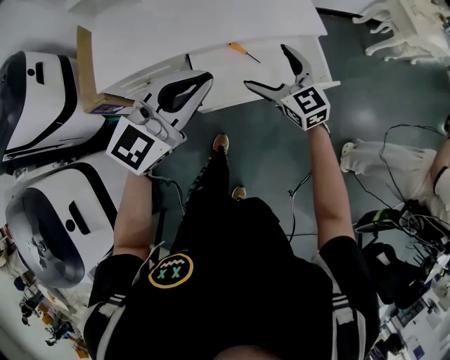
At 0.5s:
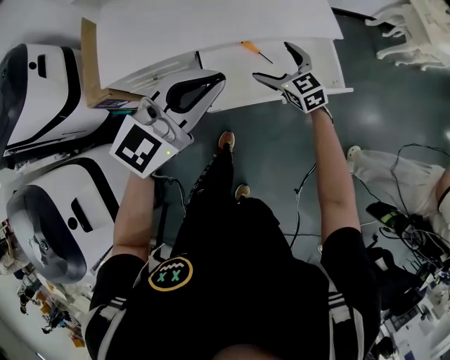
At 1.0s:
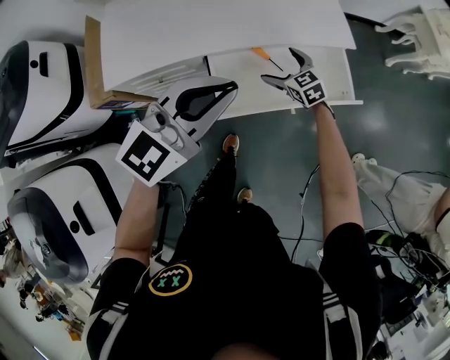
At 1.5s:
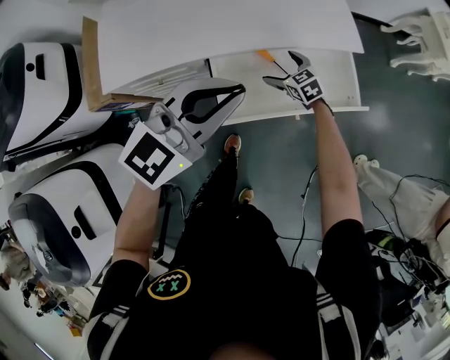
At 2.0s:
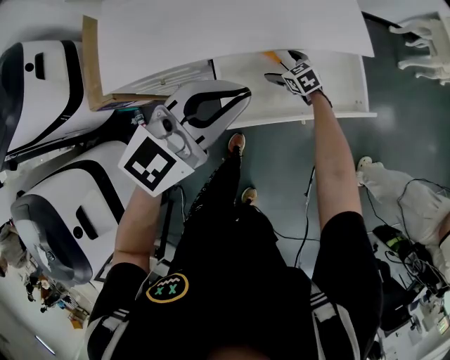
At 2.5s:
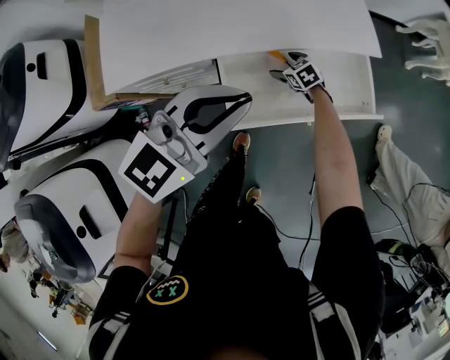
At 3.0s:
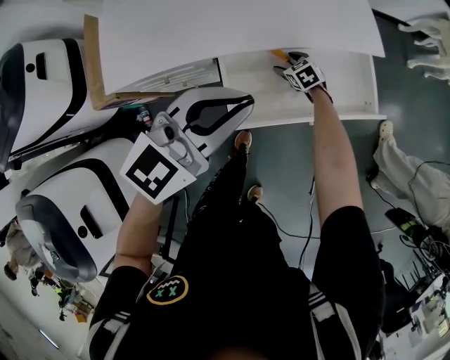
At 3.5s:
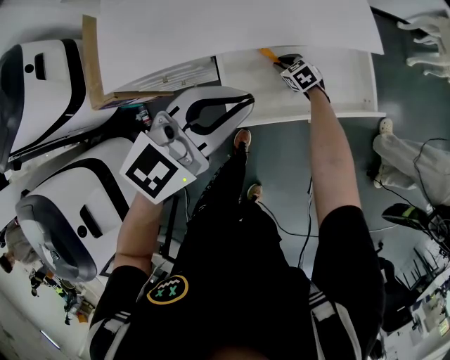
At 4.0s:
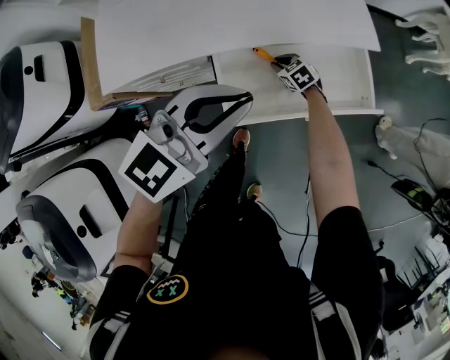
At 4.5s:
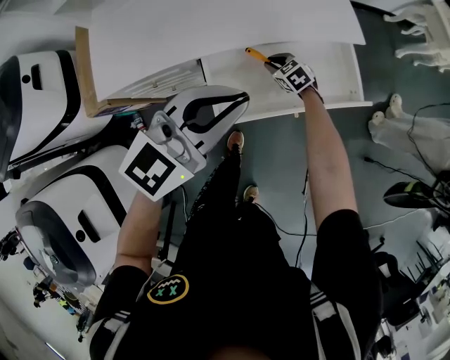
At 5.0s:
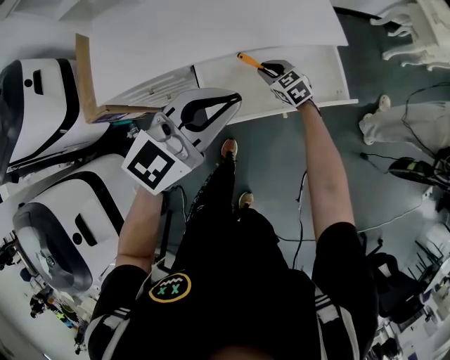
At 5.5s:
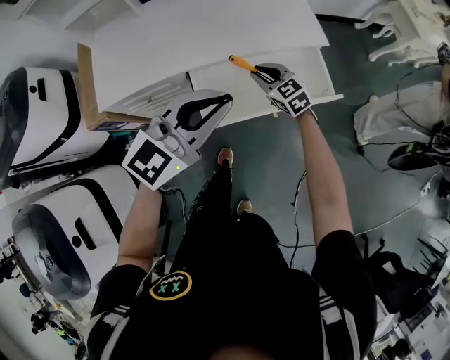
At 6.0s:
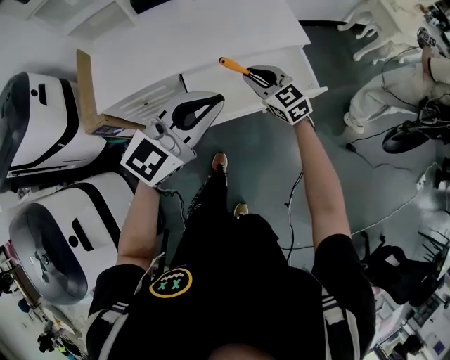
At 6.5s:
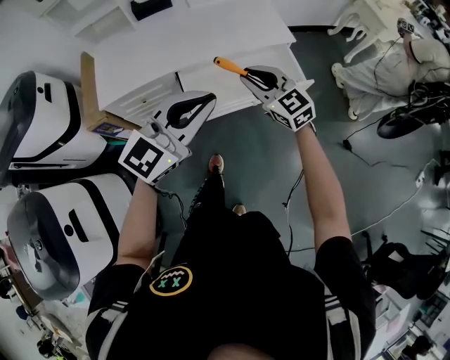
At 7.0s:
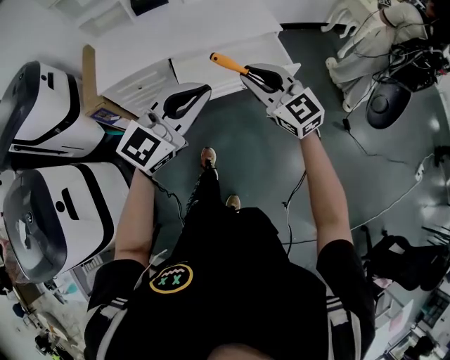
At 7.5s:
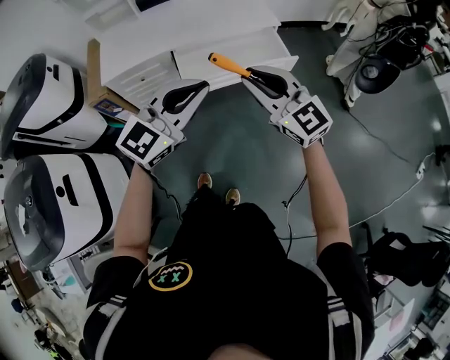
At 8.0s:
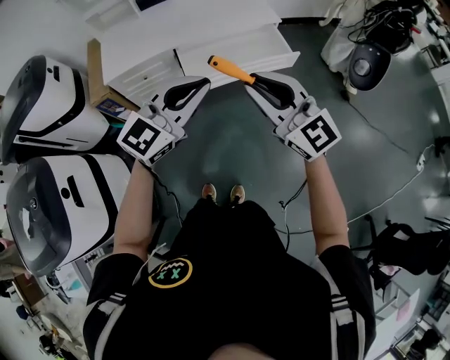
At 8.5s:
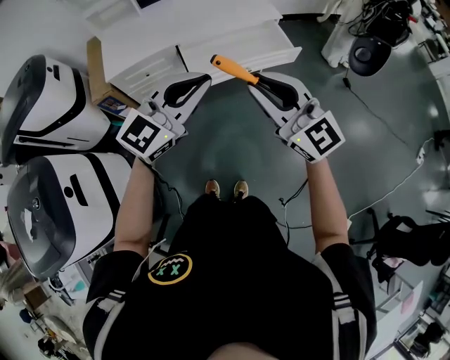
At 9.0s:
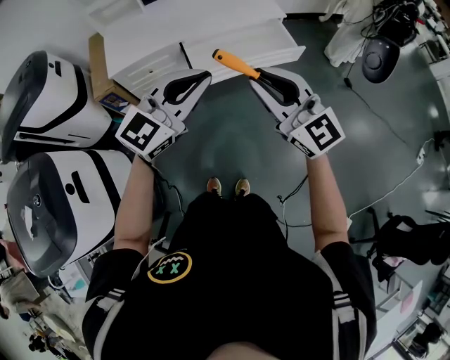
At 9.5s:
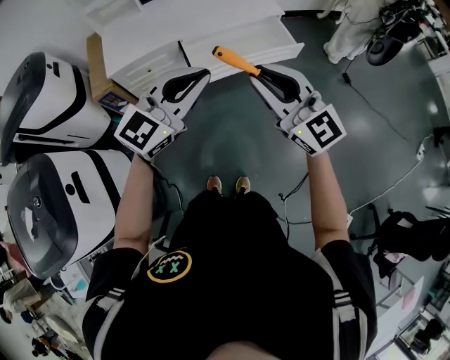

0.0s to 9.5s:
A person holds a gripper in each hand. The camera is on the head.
0.0s to 2.0s: The left gripper travels forward and downward by some 10 cm; the right gripper travels downward and forward by approximately 35 cm, and points its fingers approximately 30 degrees further downward.
2.0s to 4.0s: The right gripper closes up.
4.0s to 5.5s: The right gripper is displaced upward by some 25 cm, and turns by about 20 degrees. Meanwhile the left gripper travels backward and upward by approximately 10 cm.
5.5s to 7.5s: The left gripper heads backward, covering some 25 cm. Meanwhile the right gripper shifts some 50 cm backward and upward, and tilts its fingers some 30 degrees upward.
7.5s to 9.5s: The left gripper is displaced to the left by approximately 5 cm. Meanwhile the right gripper shifts roughly 10 cm backward and to the left.

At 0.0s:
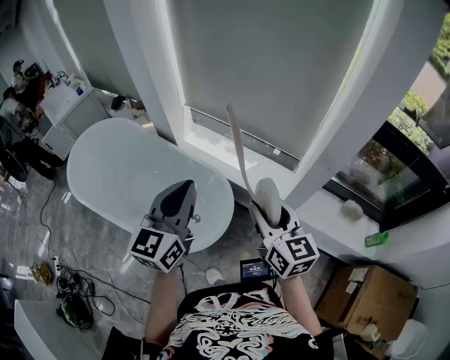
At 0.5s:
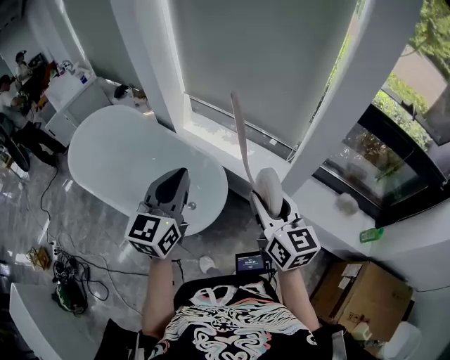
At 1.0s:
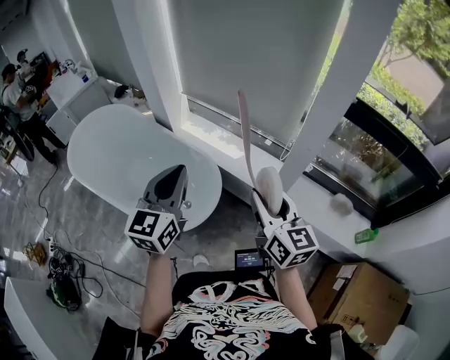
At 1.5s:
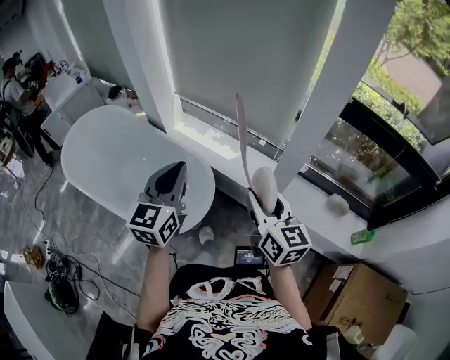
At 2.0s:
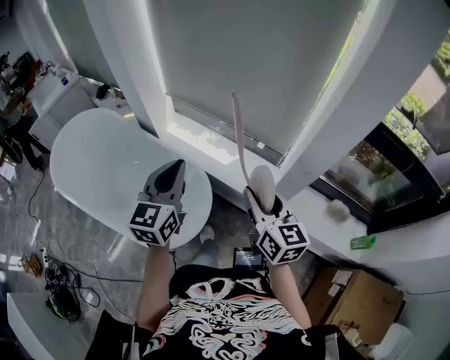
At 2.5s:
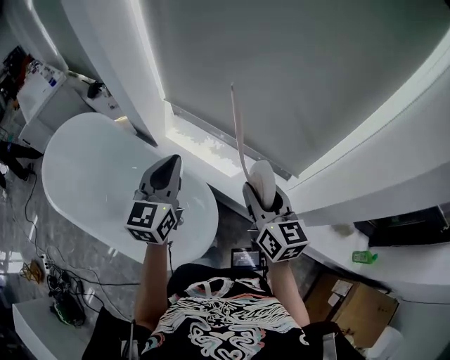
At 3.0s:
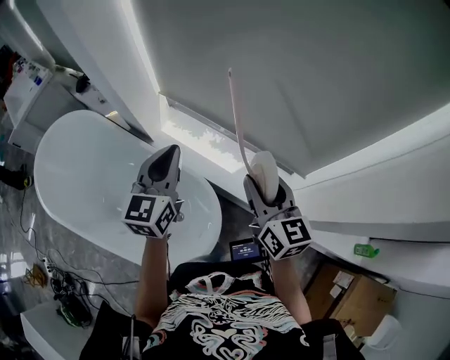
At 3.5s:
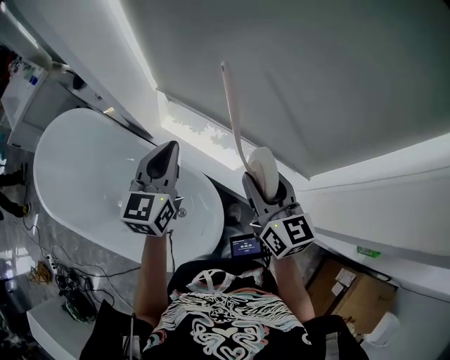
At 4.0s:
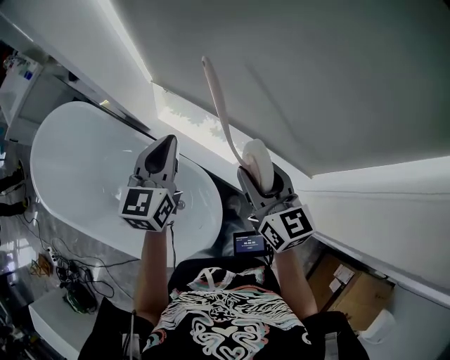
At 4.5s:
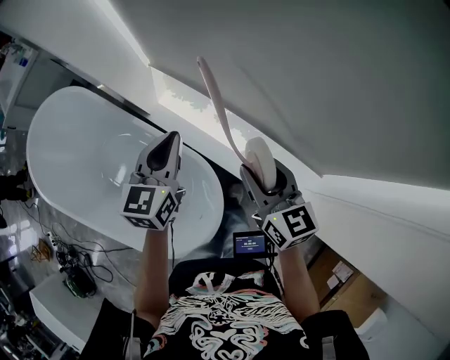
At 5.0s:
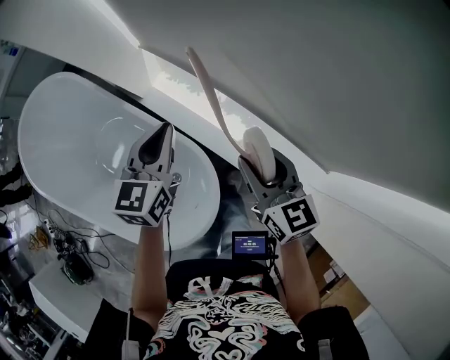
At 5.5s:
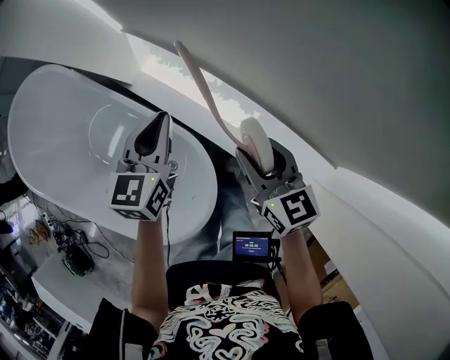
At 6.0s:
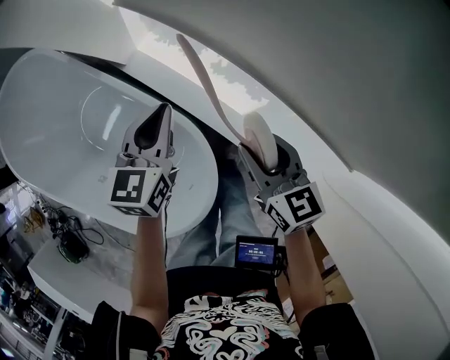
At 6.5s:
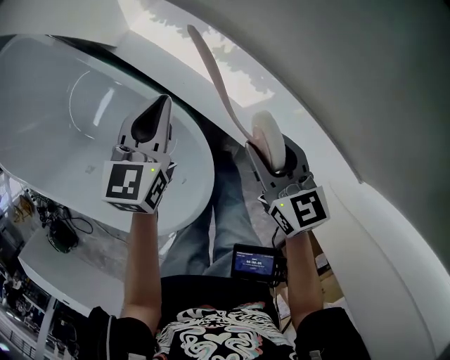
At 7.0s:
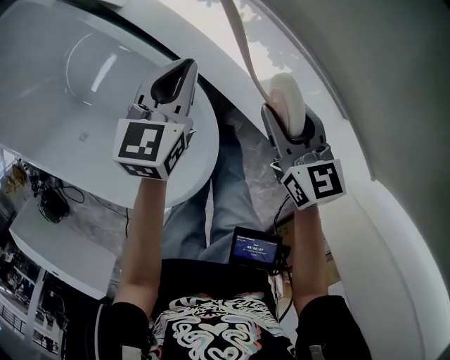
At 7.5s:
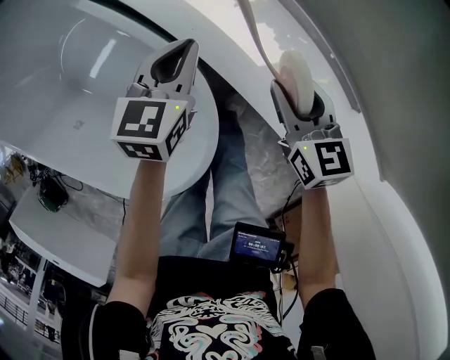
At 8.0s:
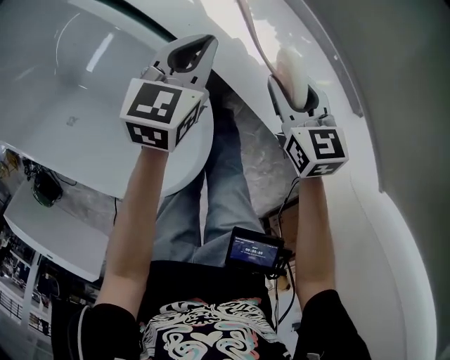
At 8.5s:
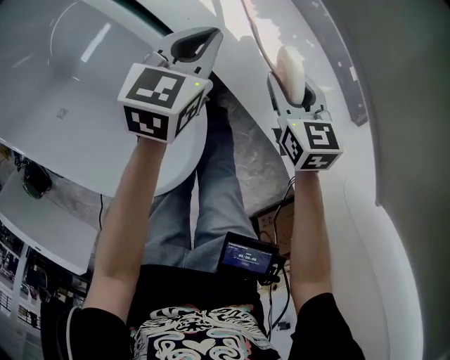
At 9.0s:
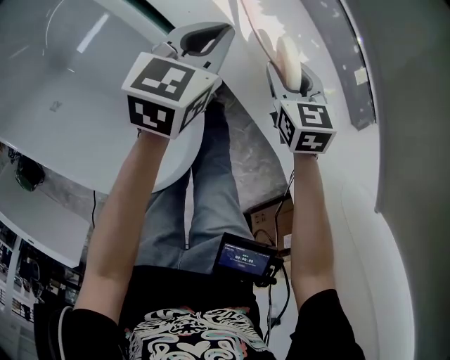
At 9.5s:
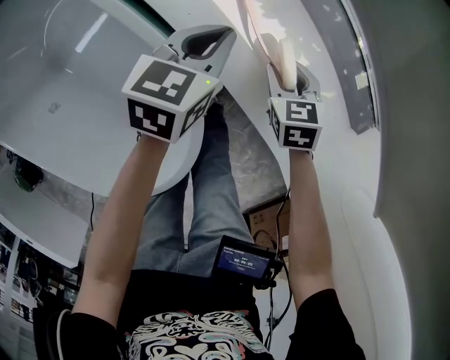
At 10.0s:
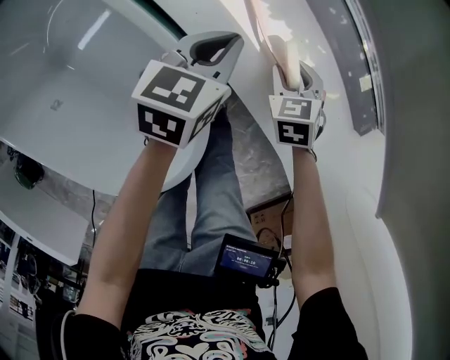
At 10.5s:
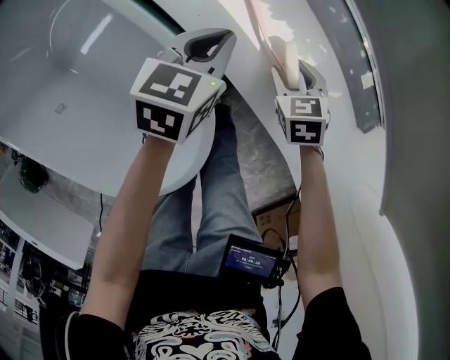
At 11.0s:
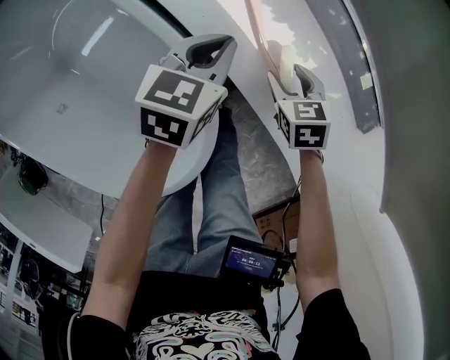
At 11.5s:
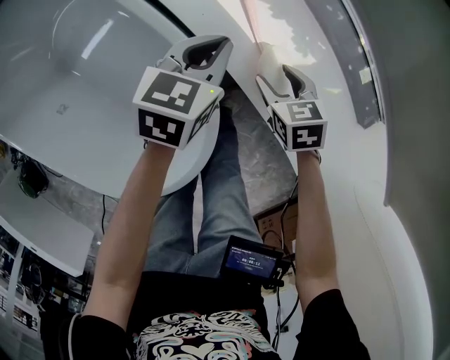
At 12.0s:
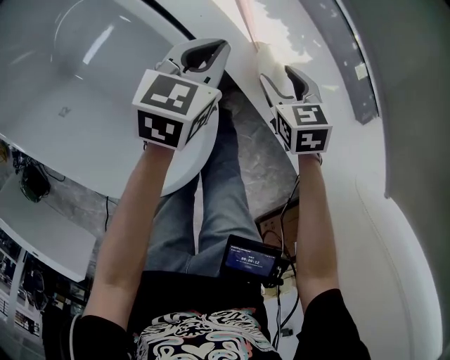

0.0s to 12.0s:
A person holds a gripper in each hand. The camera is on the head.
0.0s to 2.0s: The right gripper shifts roughly 10 cm to the right and forward, while the left gripper goes approximately 15 cm forward, to the right and downward.
2.0s to 4.0s: The two grippers go approximately 35 cm forward.
4.0s to 6.0s: The two grippers go approximately 25 cm downward.
6.0s to 8.0s: The two grippers go approximately 20 cm downward.
8.0s to 10.0s: The left gripper heads downward, covering approximately 5 cm, while the right gripper is displaced downward by about 15 cm, and swivels some 30 degrees.
10.0s to 12.0s: The left gripper moves roughly 5 cm, while the right gripper moves about 10 cm.

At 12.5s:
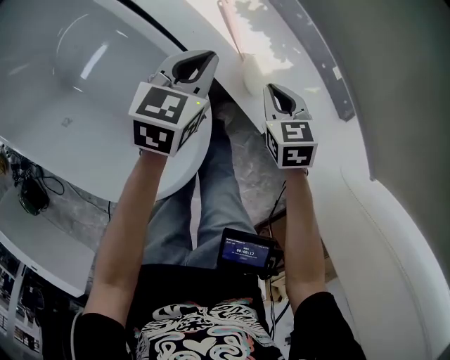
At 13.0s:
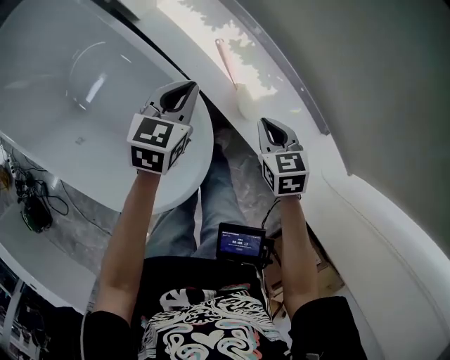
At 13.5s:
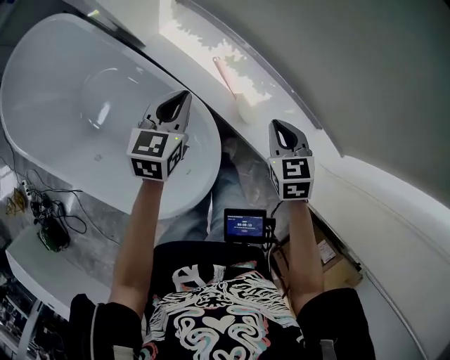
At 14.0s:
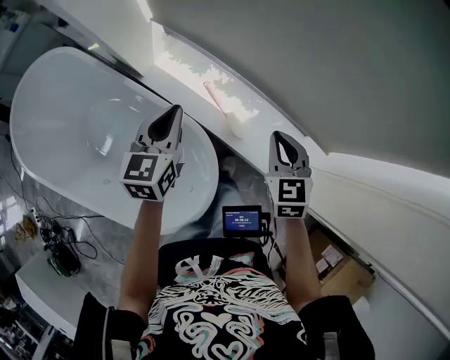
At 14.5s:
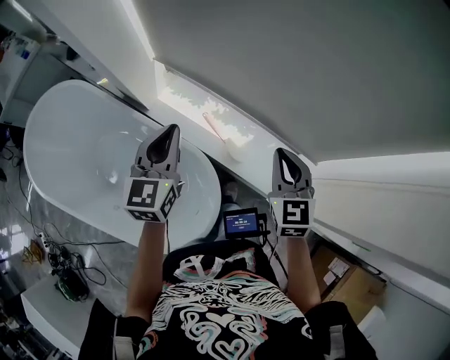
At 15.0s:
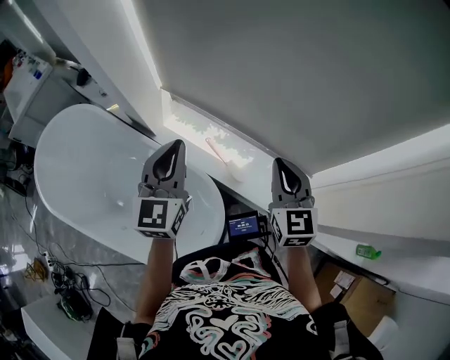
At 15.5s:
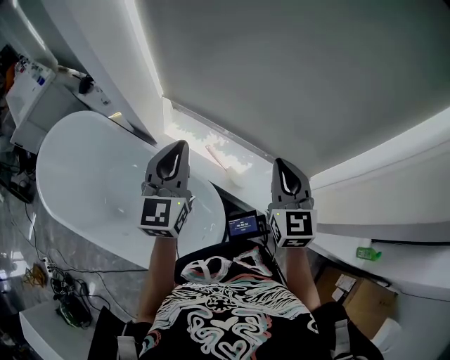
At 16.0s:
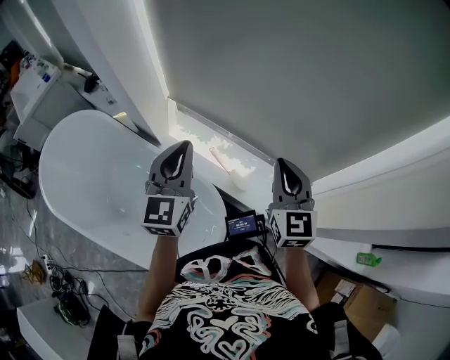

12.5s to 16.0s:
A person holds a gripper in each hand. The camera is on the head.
12.5s to 14.5s: The grippers both shift upward by approximately 40 cm. The left gripper turns by about 30 degrees, while the right gripper tilts its fingers about 30 degrees upward.
14.5s to 16.0s: Both grippers travel together upward, approximately 10 cm.

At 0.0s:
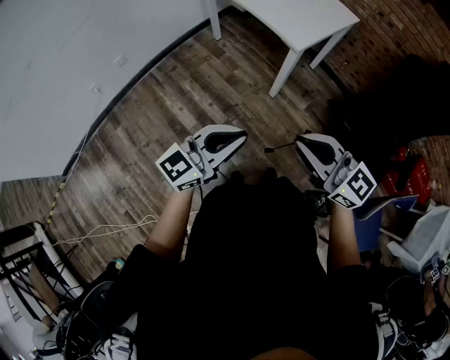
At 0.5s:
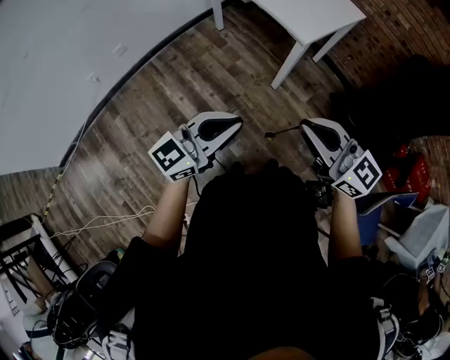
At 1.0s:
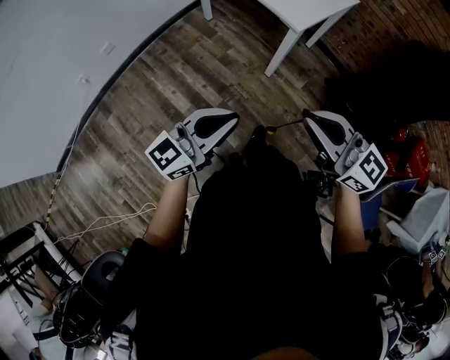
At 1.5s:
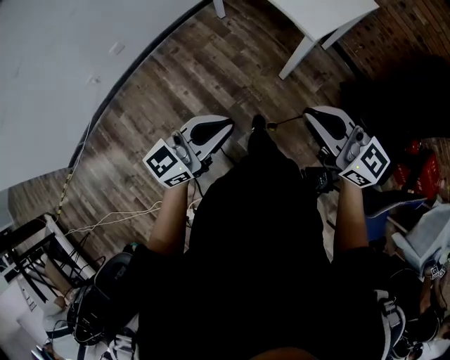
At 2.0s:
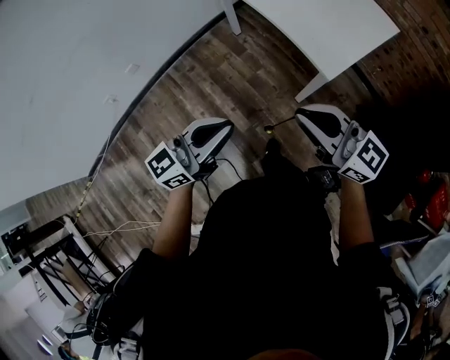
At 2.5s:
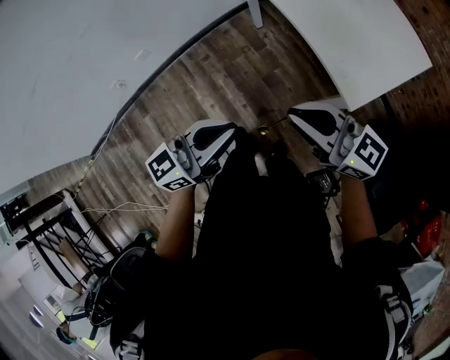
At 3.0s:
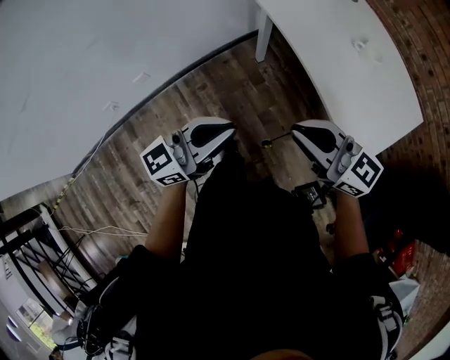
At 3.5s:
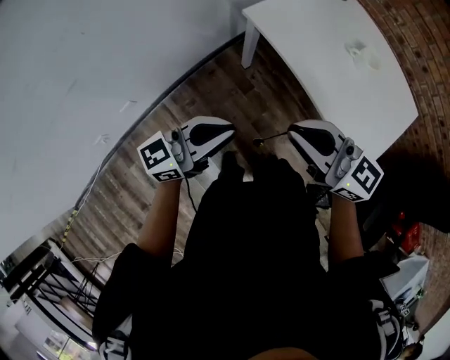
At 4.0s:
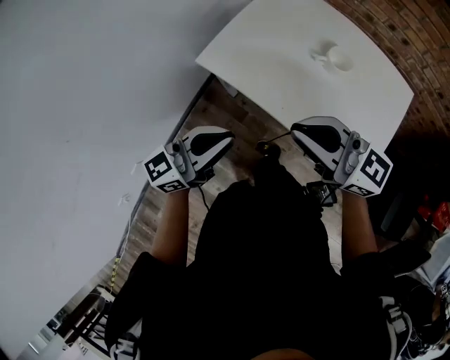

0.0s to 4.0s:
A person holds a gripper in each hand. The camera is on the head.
0.0s to 2.0s: Both grippers travel together forward, some 25 cm.
2.0s to 4.0s: Both grippers are carried forward, about 50 cm. The left gripper turns by roughly 20 degrees.
